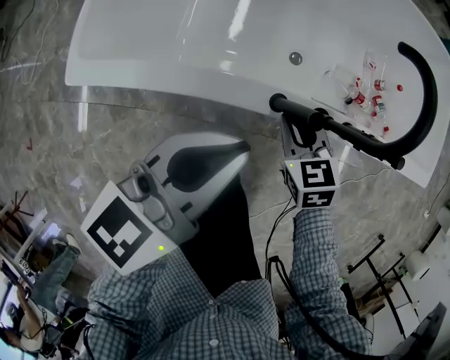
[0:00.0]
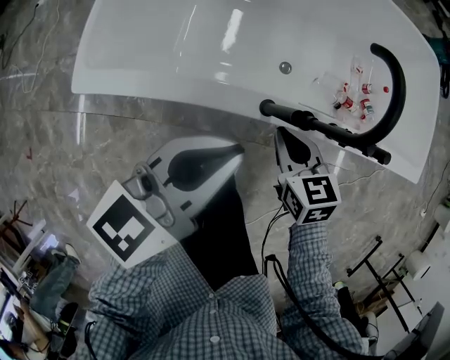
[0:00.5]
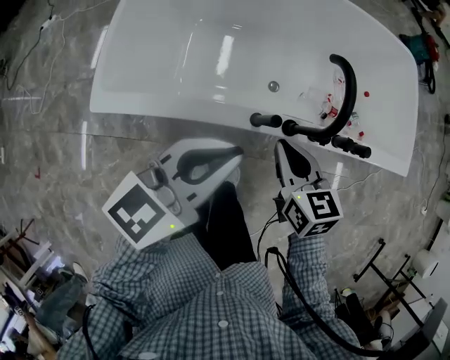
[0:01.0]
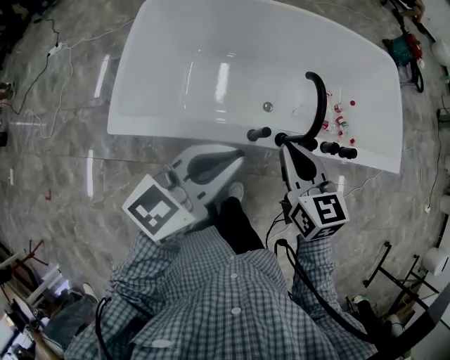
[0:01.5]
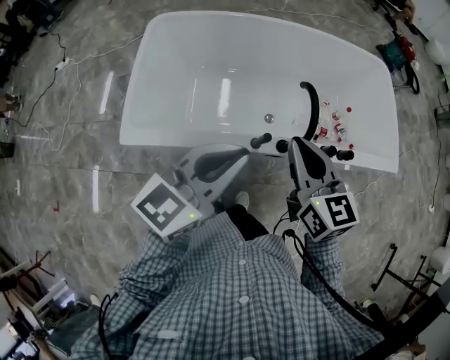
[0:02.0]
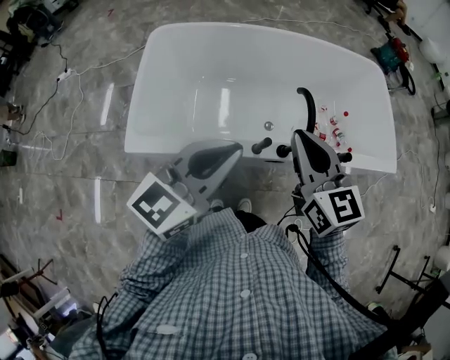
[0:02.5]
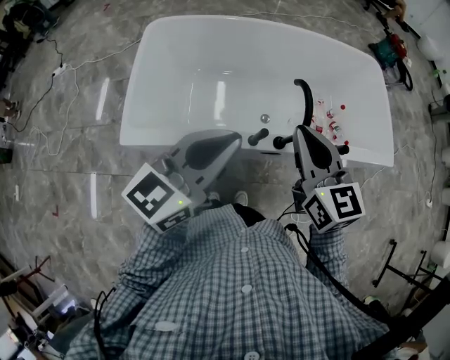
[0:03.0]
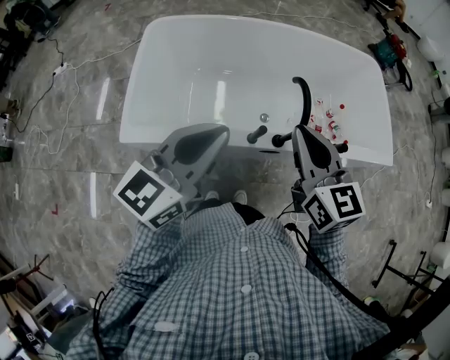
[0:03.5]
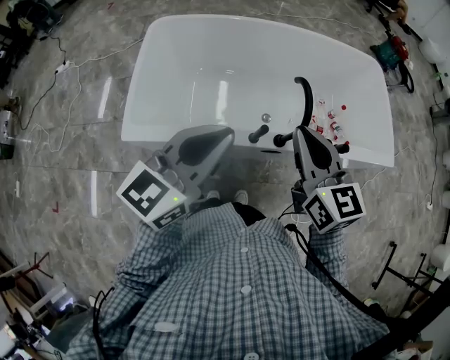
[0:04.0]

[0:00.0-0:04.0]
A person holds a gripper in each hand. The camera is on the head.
0:00.0 to 0:02.0: The left gripper travels upward by approximately 25 cm. The right gripper heads upward, covering approximately 40 cm, and tips its fingers upward by approximately 30 degrees.
0:02.0 to 0:04.0: The right gripper changes place by some 5 cm. Meanwhile the left gripper moves about 5 cm.

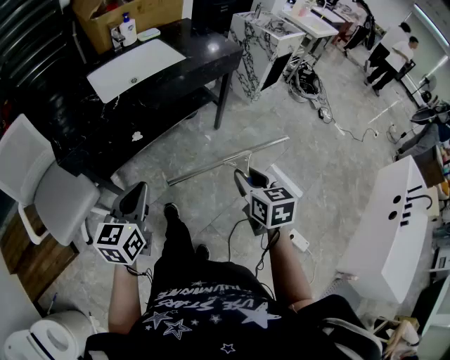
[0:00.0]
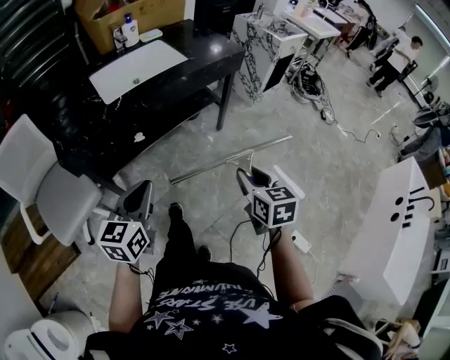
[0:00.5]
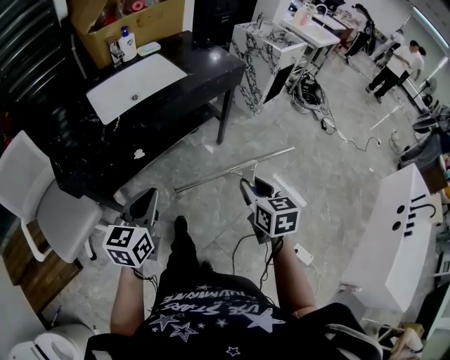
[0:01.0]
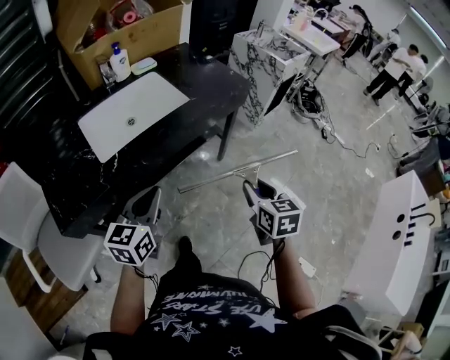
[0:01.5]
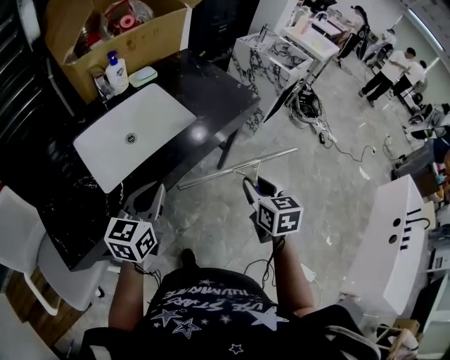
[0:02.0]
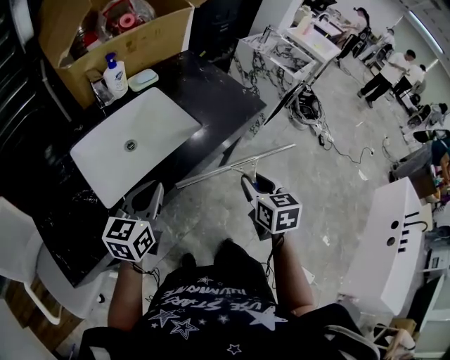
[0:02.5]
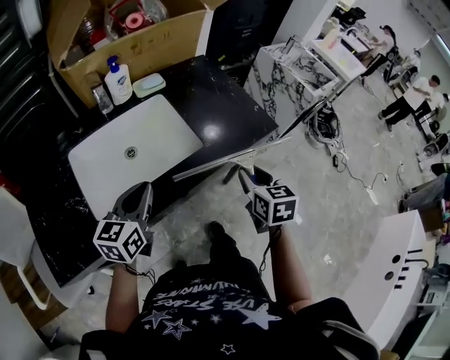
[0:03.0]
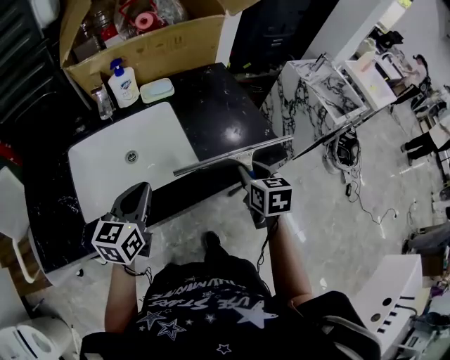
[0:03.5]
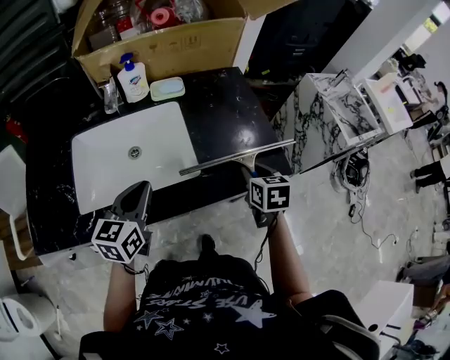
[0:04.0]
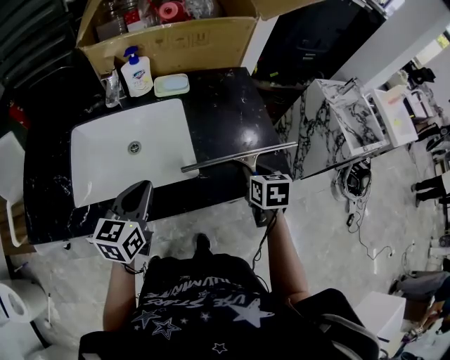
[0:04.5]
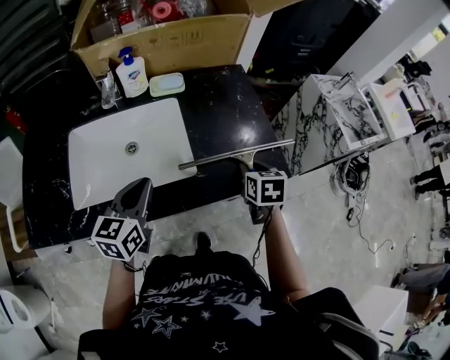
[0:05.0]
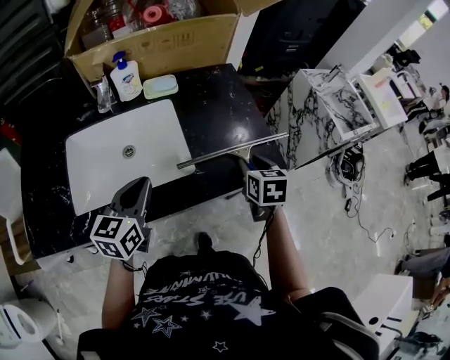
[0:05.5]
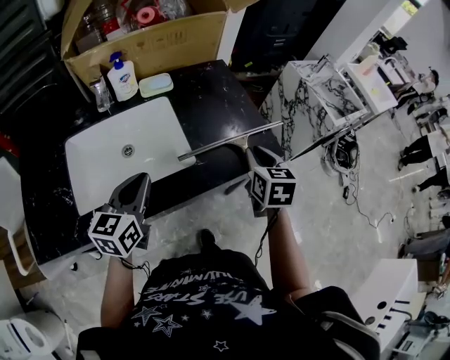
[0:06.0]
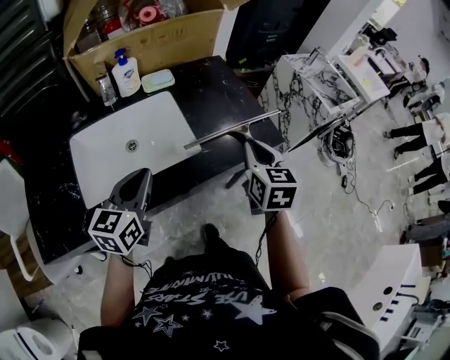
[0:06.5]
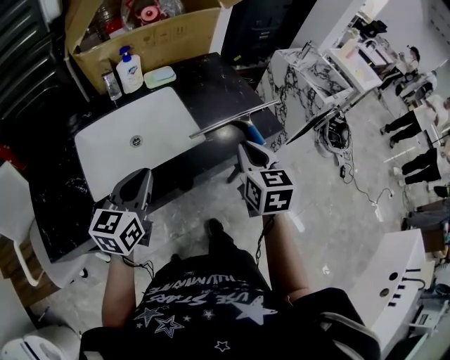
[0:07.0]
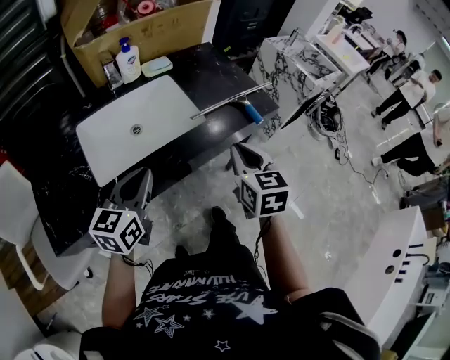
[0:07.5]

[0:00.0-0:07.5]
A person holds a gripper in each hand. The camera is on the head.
0:00.0 to 0:02.0: The two grippers go about 40 cm forward.
0:02.0 to 0:04.0: The left gripper moves about 25 cm, and swivels roughly 30 degrees. The right gripper changes place by roughly 40 cm, and swivels approximately 30 degrees.
0:04.0 to 0:05.5: The grippers stay close to where they were, moving slightly.
0:05.5 to 0:07.5: The left gripper goes some 20 cm backward and to the left; the right gripper moves backward, to the left and upward, about 30 cm, and closes up.

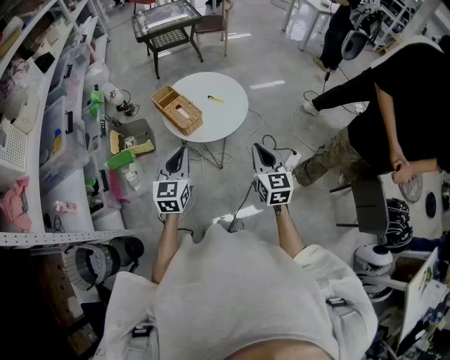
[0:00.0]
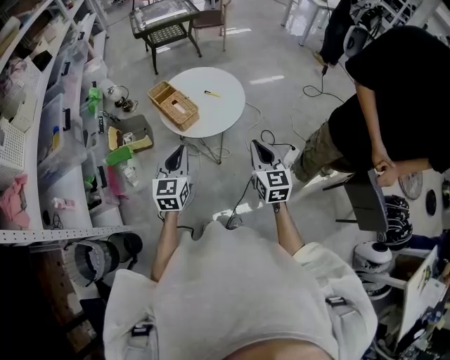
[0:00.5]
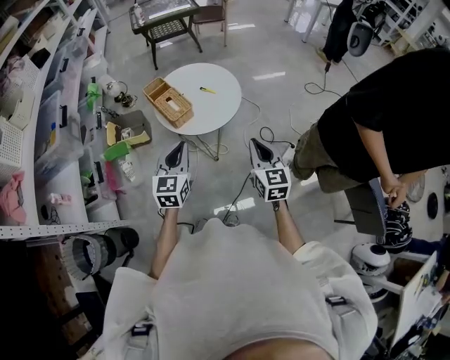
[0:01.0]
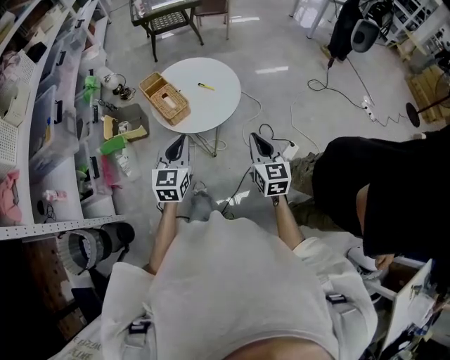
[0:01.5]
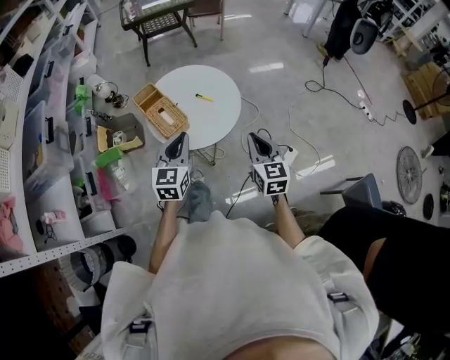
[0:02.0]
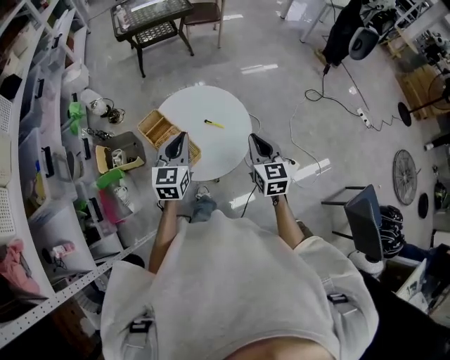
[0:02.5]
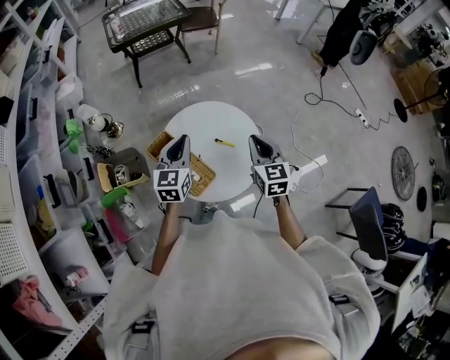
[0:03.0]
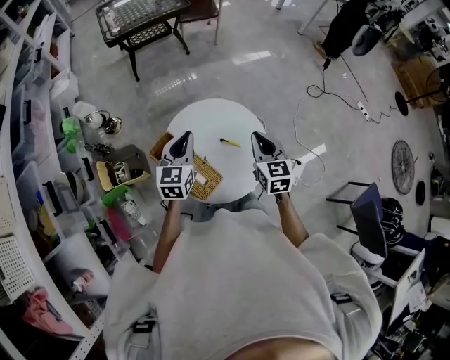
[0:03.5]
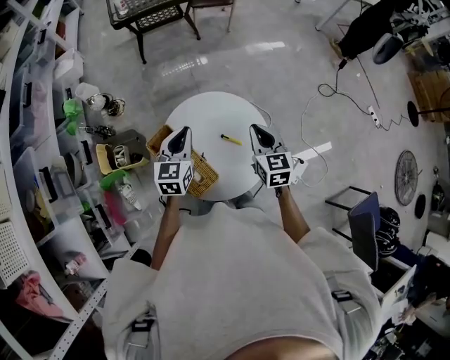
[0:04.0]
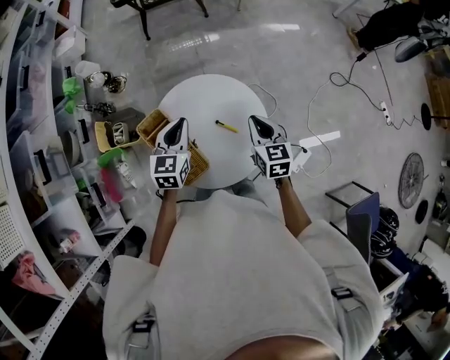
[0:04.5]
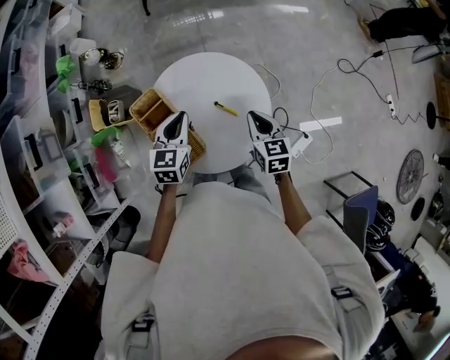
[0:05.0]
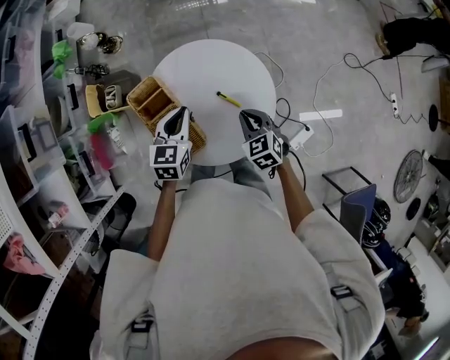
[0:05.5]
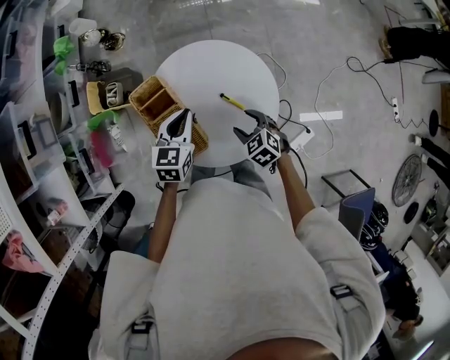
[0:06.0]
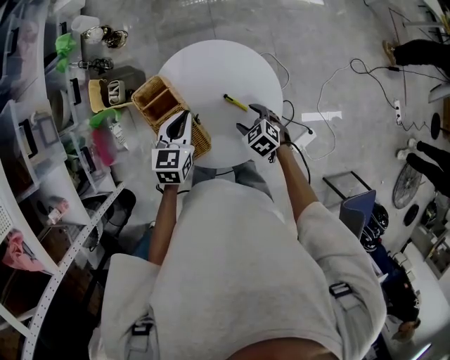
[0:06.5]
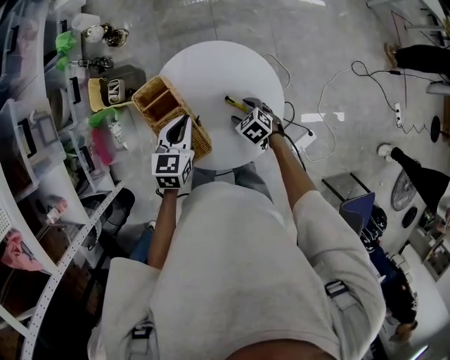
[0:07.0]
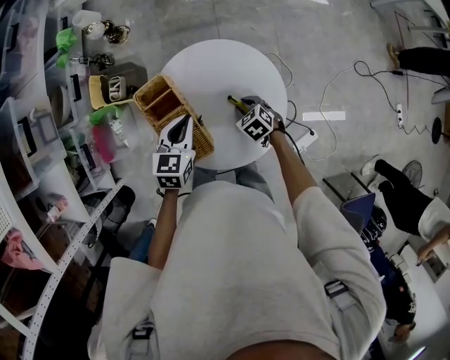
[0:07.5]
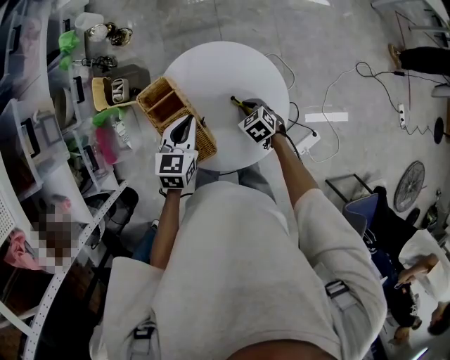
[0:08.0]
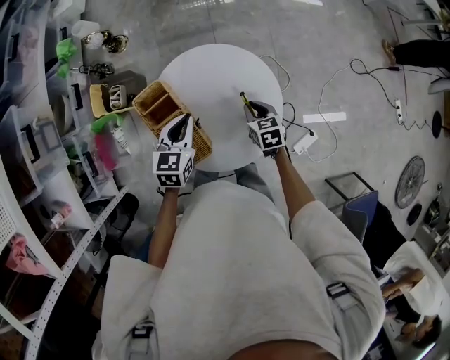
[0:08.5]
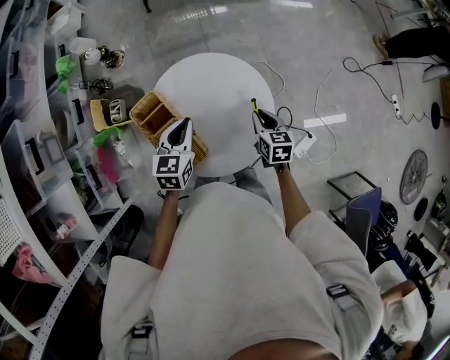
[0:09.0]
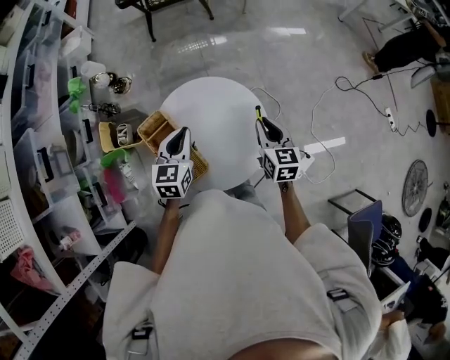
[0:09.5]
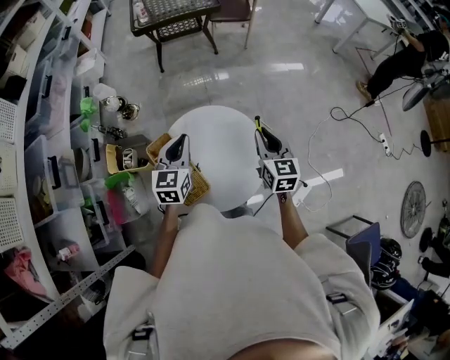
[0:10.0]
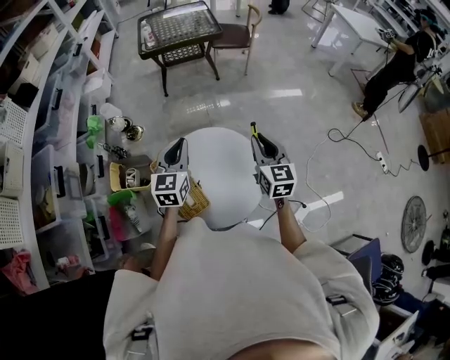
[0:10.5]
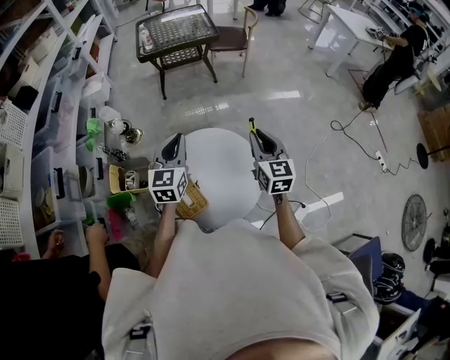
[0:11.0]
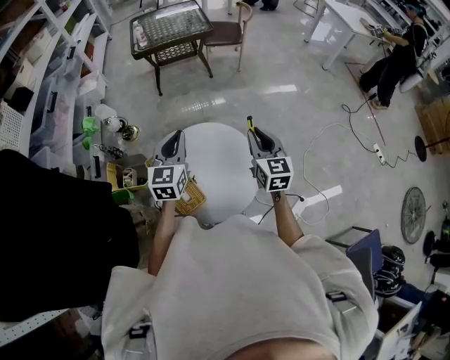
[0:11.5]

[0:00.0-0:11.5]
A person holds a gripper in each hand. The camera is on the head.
0:00.0 to 0:02.0: The right gripper travels forward by some 10 cm. The left gripper heads forward and to the right, covering about 15 cm.
0:02.0 to 0:04.0: The grippers both shift forward and to the left by roughly 30 cm.
0:04.0 to 0:06.0: The left gripper travels downward and backward by some 10 cm; the right gripper is displaced downward and backward by about 20 cm, tilts its fingers approximately 30 degrees downward, and opens its fingers.
0:06.0 to 0:07.5: The right gripper heads downward and forward, covering about 10 cm, and closes its fingers.
0:07.5 to 0:09.5: The right gripper goes about 25 cm upward and to the right, and tips its fingers upward by some 40 degrees. Meanwhile the left gripper is displaced upward by approximately 10 cm.
0:09.5 to 0:11.5: Both grippers move upward, approximately 10 cm.

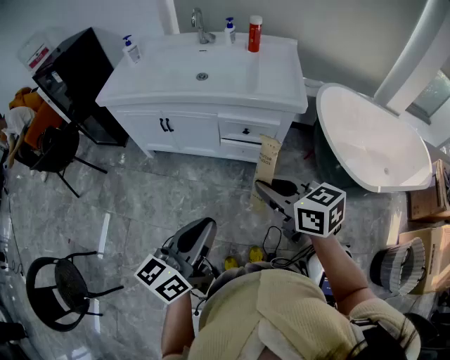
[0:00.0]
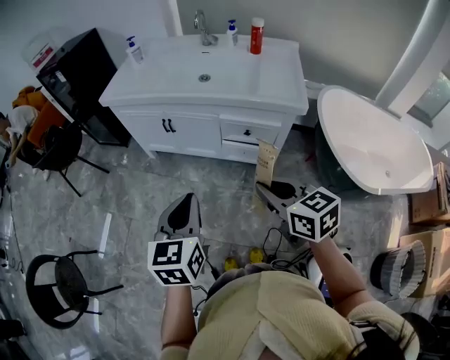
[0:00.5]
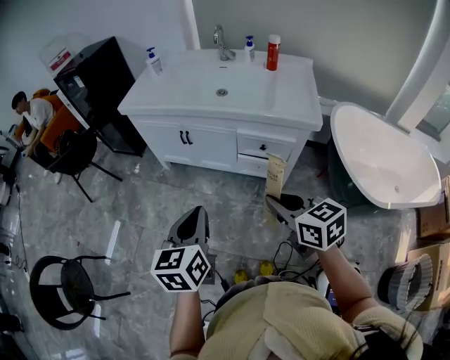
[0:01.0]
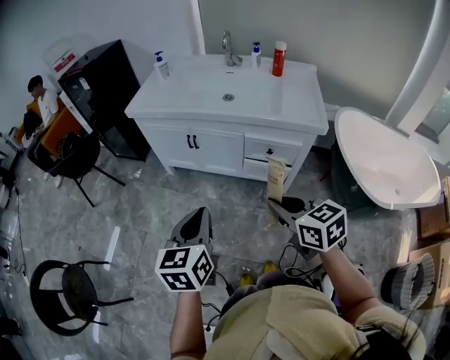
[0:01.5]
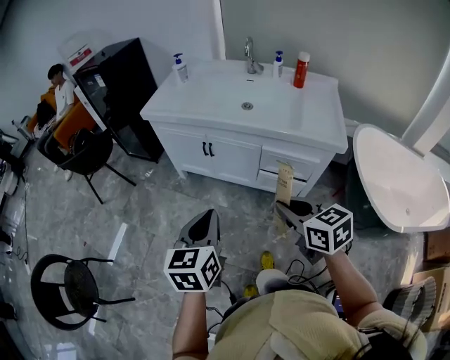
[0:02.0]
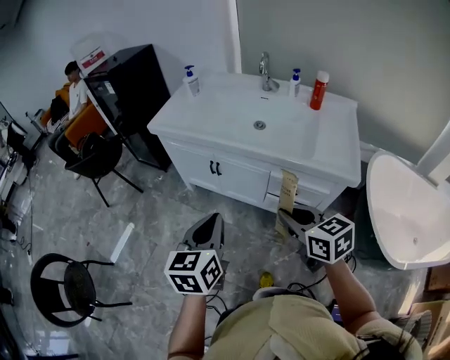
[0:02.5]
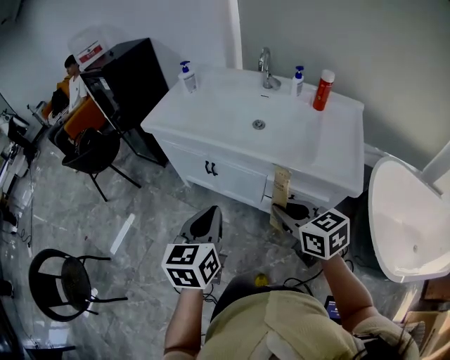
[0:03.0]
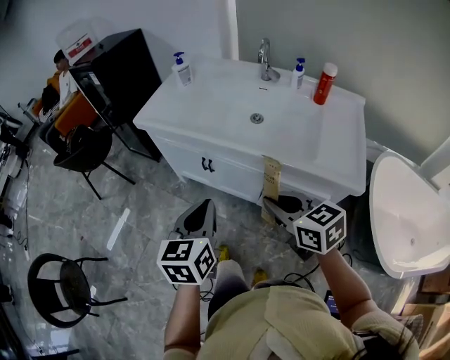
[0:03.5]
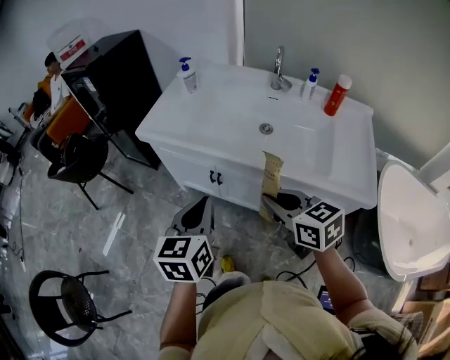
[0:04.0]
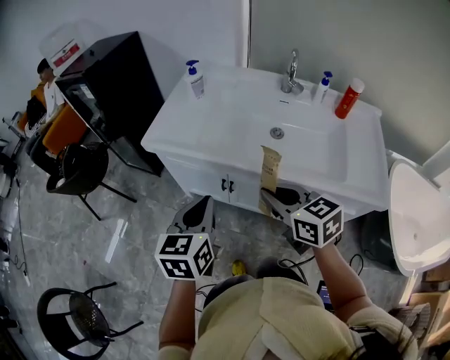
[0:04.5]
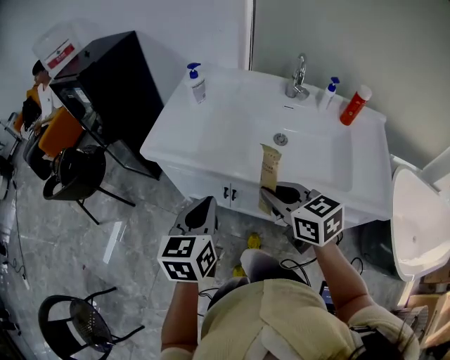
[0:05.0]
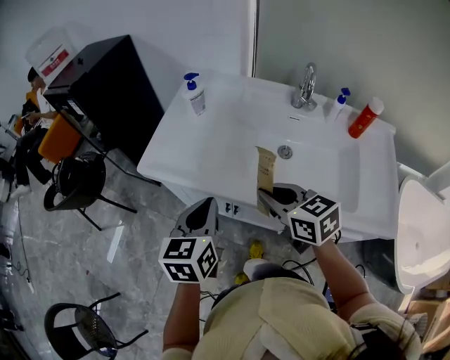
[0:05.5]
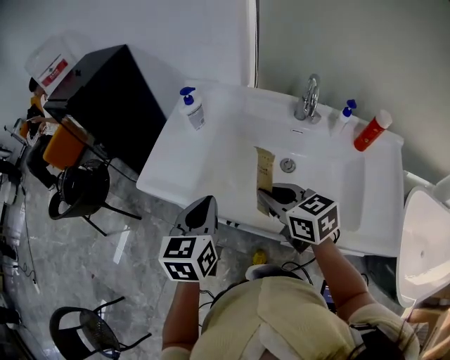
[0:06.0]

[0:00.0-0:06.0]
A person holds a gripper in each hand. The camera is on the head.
0:00.0 to 0:02.0: The right gripper travels forward and to the left by about 10 cm. The left gripper is displaced forward and to the left by some 15 cm, and swivels approximately 40 degrees.
0:02.0 to 0:04.0: Both grippers move forward, approximately 25 cm.
0:04.0 to 0:06.0: The grippers both shift forward by some 25 cm.
